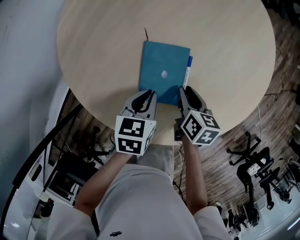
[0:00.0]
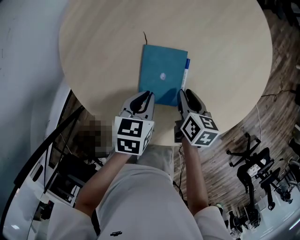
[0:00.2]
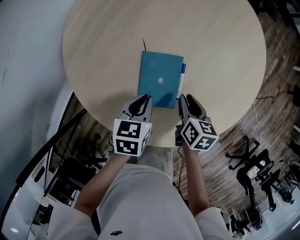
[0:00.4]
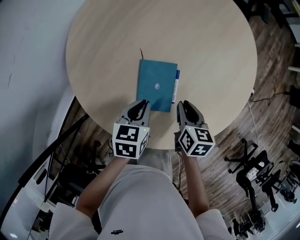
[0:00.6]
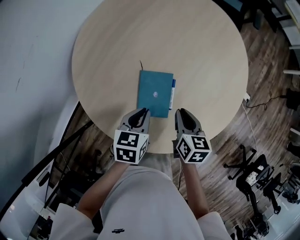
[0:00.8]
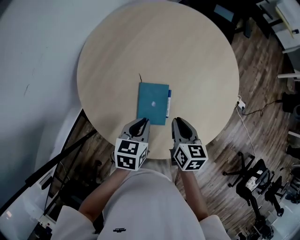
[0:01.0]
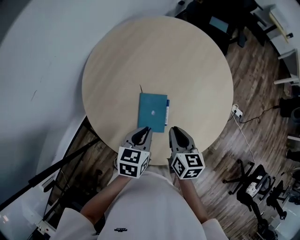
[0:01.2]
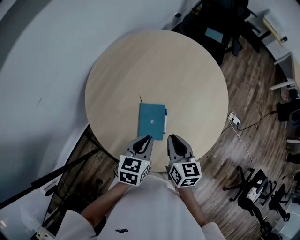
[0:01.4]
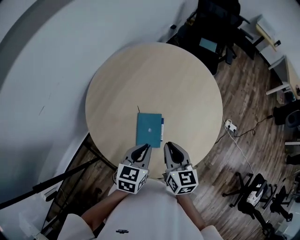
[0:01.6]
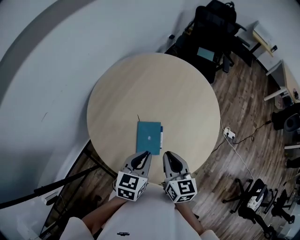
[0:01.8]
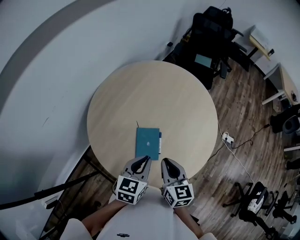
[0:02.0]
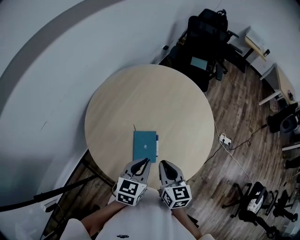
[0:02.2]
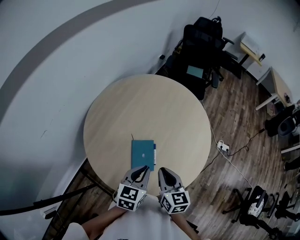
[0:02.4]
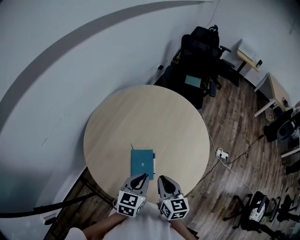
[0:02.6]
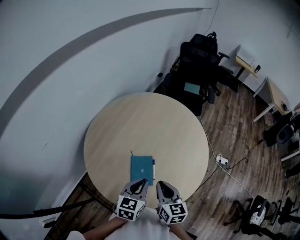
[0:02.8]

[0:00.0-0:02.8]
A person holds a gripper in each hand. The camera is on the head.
0:00.0 to 0:01.4: The two grippers go about 25 cm upward. The right gripper rotates approximately 30 degrees.
0:01.4 to 0:02.8: The two grippers go approximately 10 cm upward.

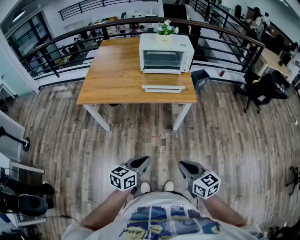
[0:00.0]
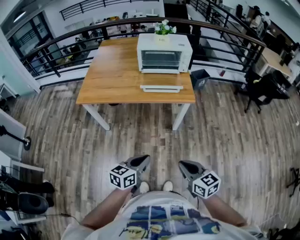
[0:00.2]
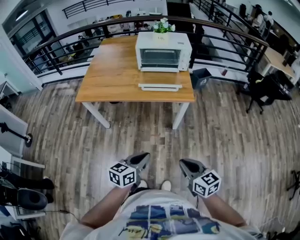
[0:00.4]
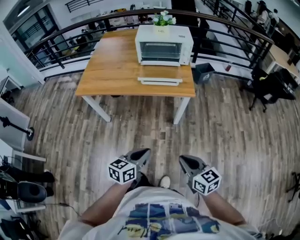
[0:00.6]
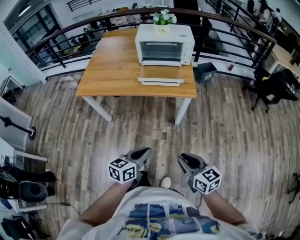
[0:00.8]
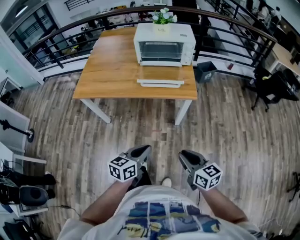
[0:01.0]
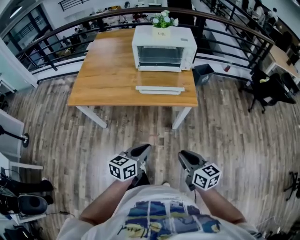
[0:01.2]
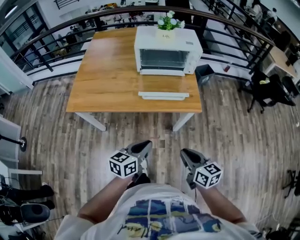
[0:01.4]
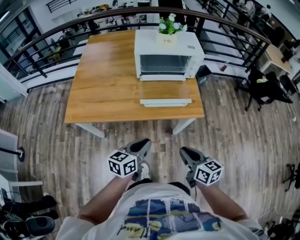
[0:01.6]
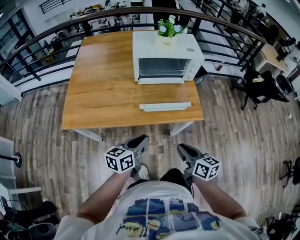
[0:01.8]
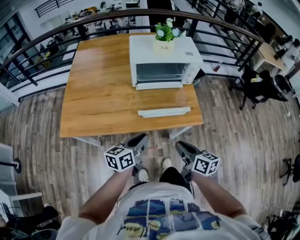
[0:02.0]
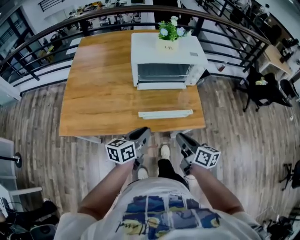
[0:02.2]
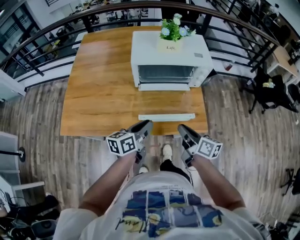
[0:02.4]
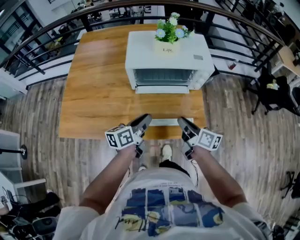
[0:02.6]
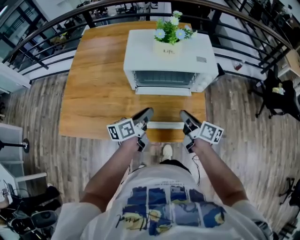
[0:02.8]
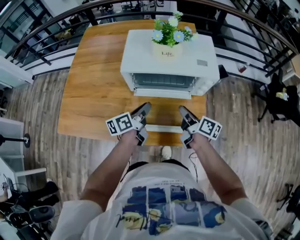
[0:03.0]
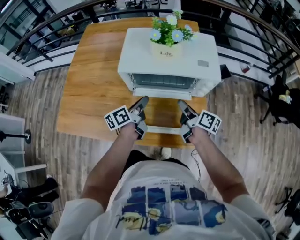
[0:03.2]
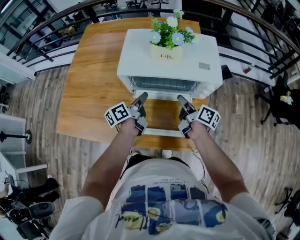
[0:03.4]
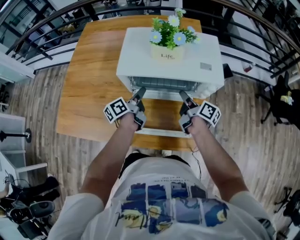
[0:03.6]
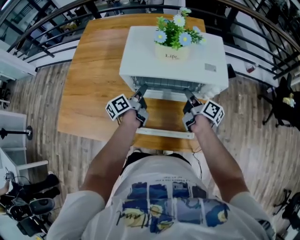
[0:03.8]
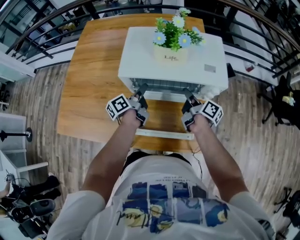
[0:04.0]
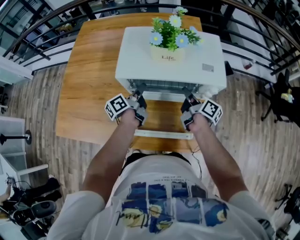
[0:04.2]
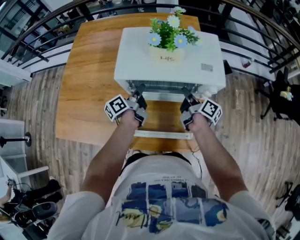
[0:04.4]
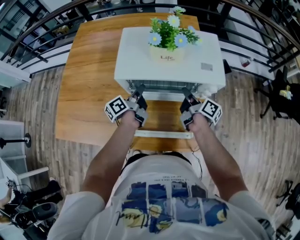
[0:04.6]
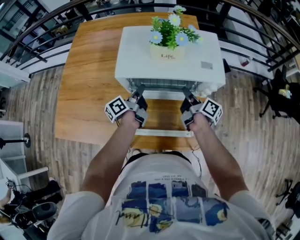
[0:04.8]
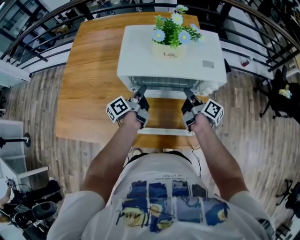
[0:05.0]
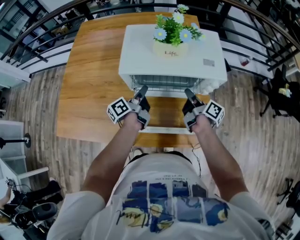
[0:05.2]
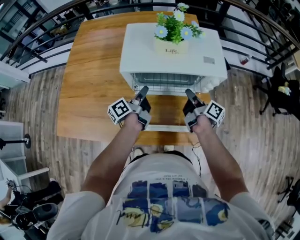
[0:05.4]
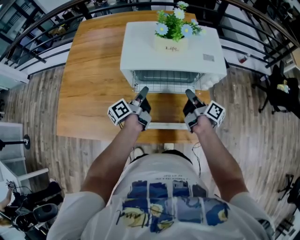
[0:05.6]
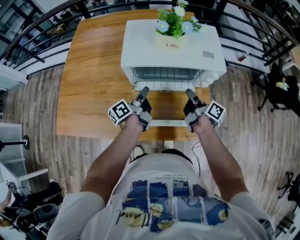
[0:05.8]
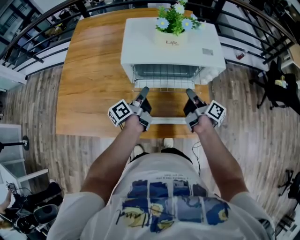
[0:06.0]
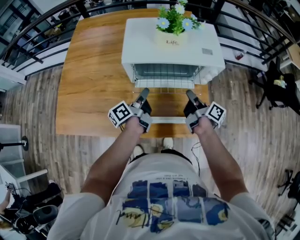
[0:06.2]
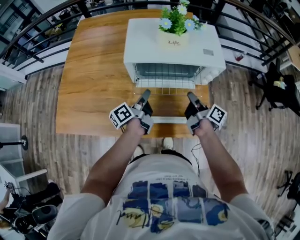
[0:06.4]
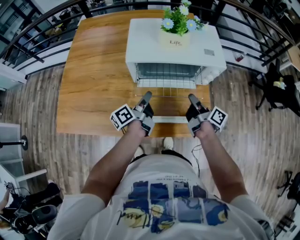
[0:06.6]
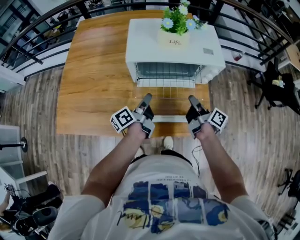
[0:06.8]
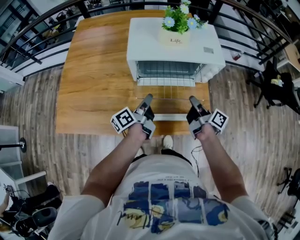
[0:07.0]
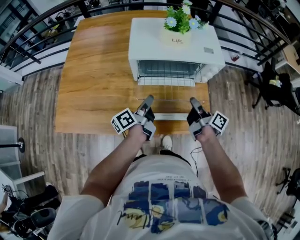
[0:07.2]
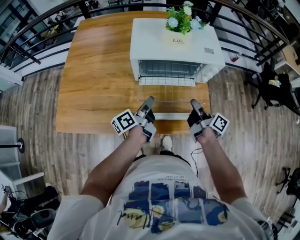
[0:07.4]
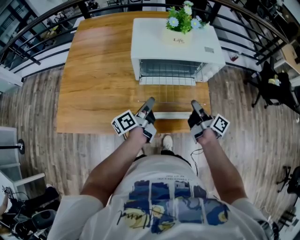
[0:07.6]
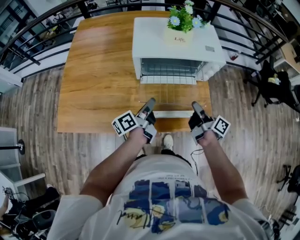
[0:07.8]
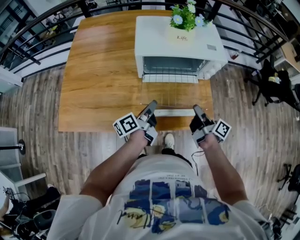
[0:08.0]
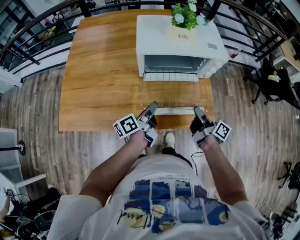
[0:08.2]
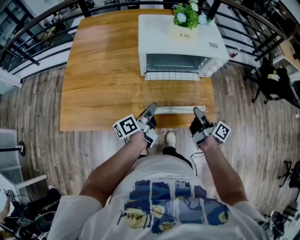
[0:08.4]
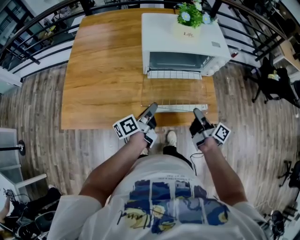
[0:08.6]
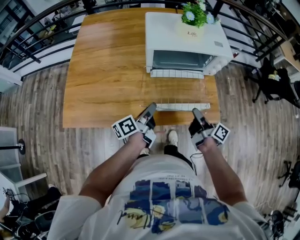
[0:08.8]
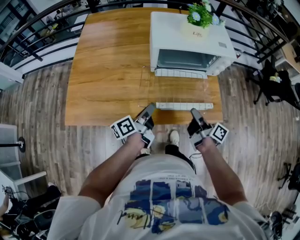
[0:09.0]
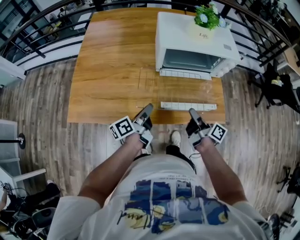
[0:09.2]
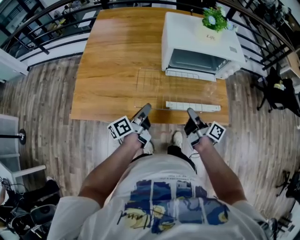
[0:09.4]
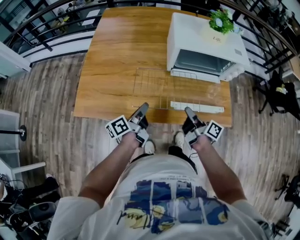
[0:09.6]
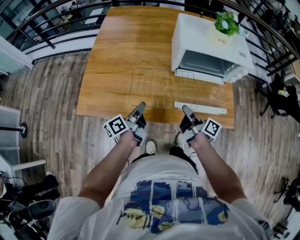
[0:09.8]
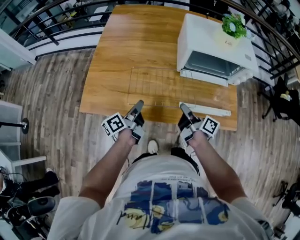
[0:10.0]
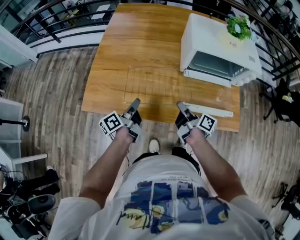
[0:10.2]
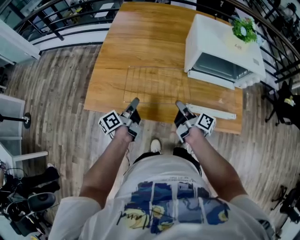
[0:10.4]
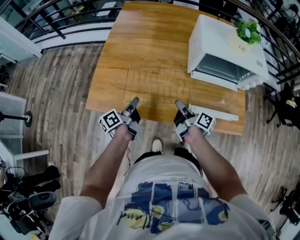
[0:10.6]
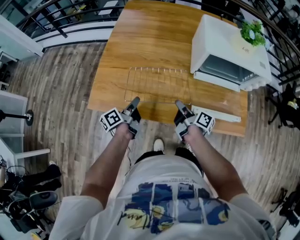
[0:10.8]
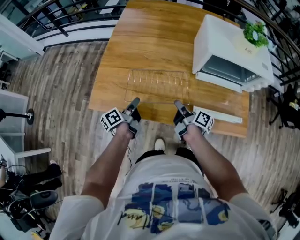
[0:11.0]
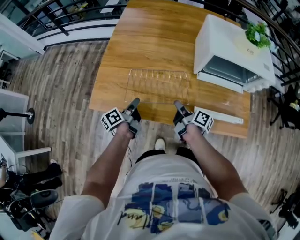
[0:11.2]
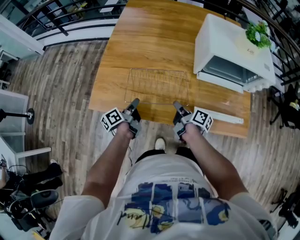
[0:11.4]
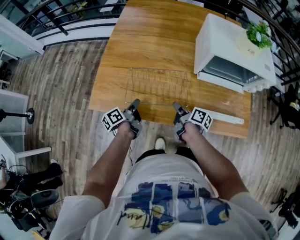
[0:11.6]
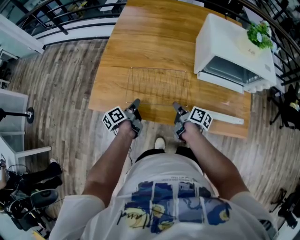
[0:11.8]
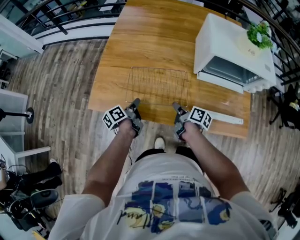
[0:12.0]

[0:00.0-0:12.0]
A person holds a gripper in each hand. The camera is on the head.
0:00.0 to 0:01.6: Both grippers move forward, approximately 30 cm.
0:01.6 to 0:03.0: The grippers both shift forward by roughly 40 cm. The left gripper rotates about 30 degrees; the right gripper swivels roughly 40 degrees.
0:03.0 to 0:04.4: The two grippers go some 10 cm forward.
0:04.4 to 0:06.0: Both grippers travel together backward, roughly 10 cm.
0:06.0 to 0:07.6: Both grippers move backward, some 10 cm.
0:07.6 to 0:09.0: The two grippers go about 10 cm backward and to the left.
0:09.0 to 0:10.4: Both grippers move to the left, about 25 cm.
0:10.4 to 0:12.0: The grippers both shift downward by roughly 10 cm.

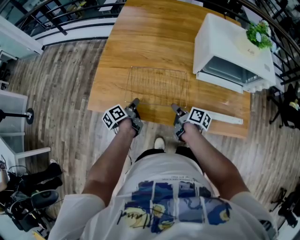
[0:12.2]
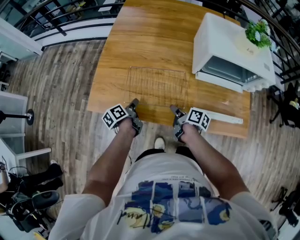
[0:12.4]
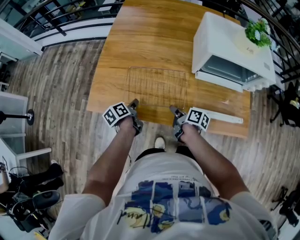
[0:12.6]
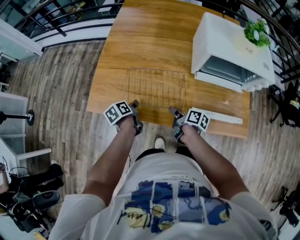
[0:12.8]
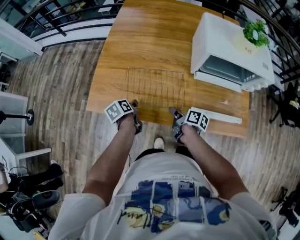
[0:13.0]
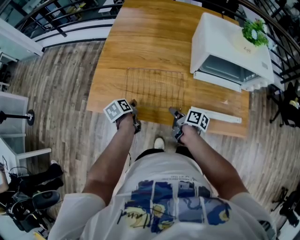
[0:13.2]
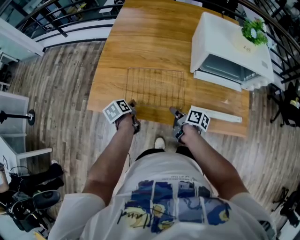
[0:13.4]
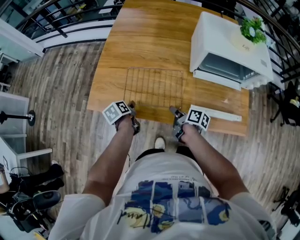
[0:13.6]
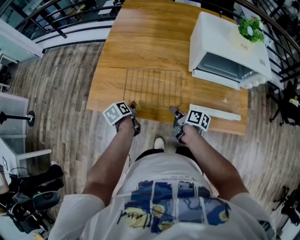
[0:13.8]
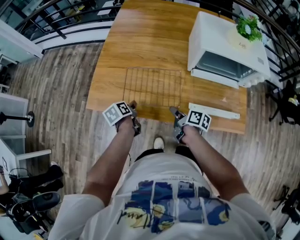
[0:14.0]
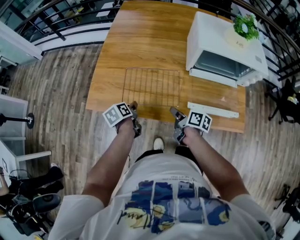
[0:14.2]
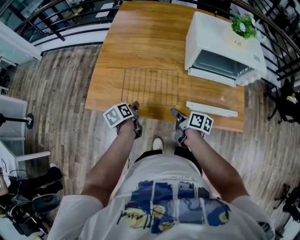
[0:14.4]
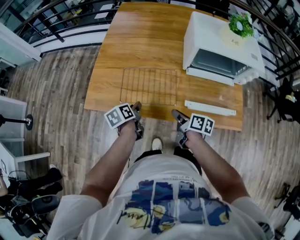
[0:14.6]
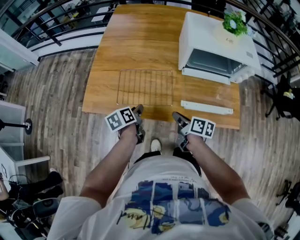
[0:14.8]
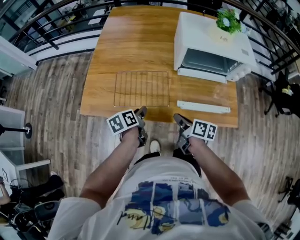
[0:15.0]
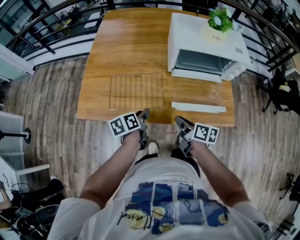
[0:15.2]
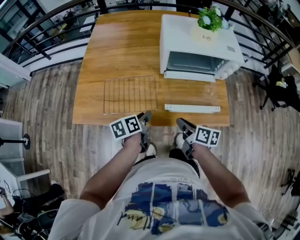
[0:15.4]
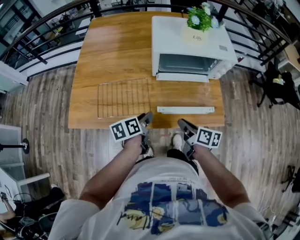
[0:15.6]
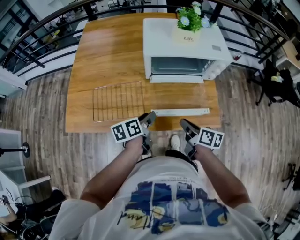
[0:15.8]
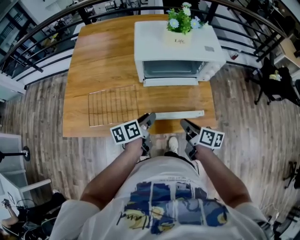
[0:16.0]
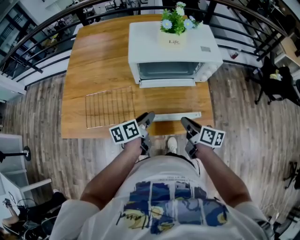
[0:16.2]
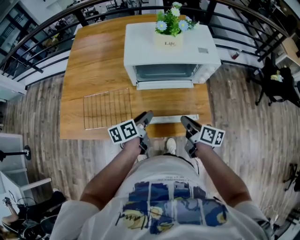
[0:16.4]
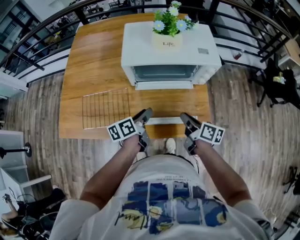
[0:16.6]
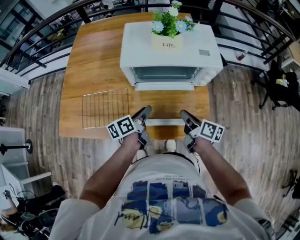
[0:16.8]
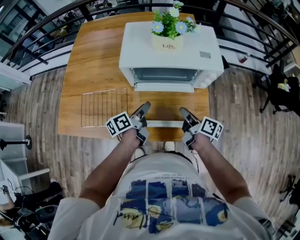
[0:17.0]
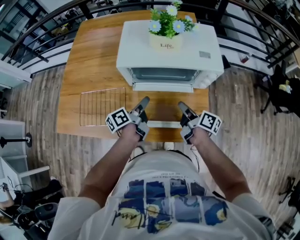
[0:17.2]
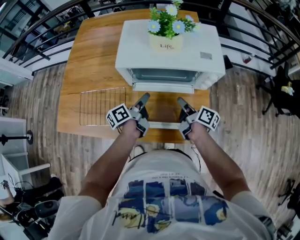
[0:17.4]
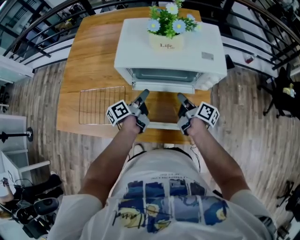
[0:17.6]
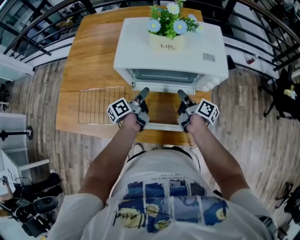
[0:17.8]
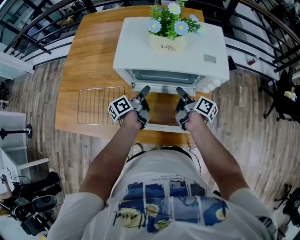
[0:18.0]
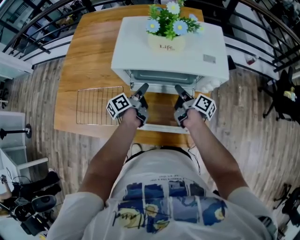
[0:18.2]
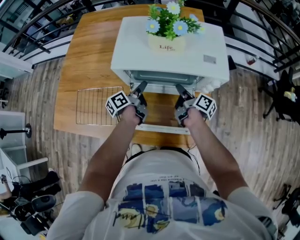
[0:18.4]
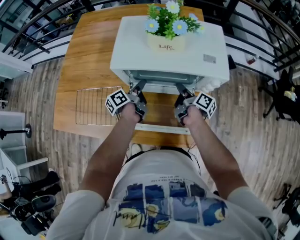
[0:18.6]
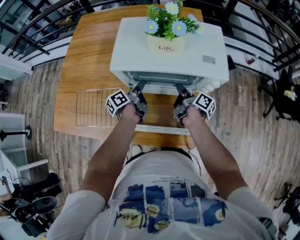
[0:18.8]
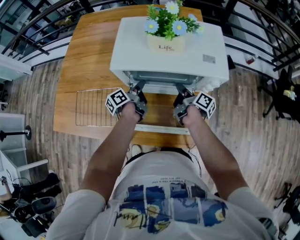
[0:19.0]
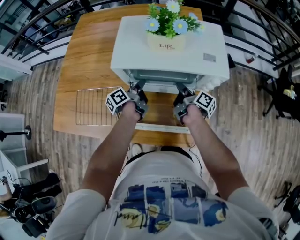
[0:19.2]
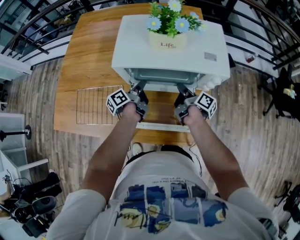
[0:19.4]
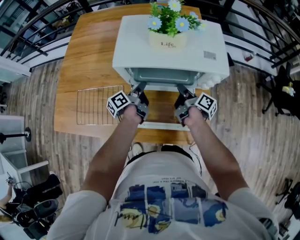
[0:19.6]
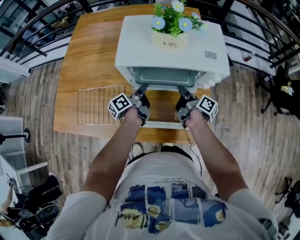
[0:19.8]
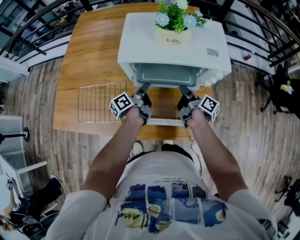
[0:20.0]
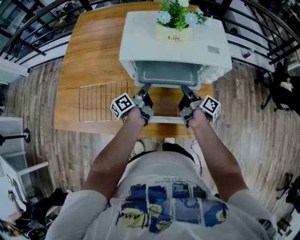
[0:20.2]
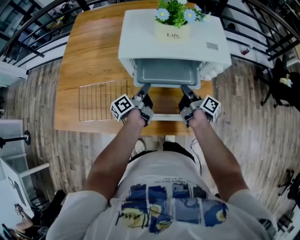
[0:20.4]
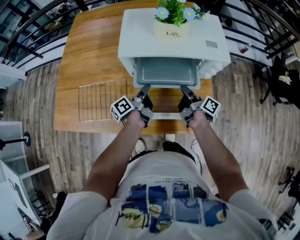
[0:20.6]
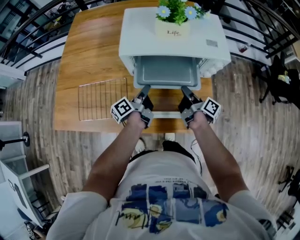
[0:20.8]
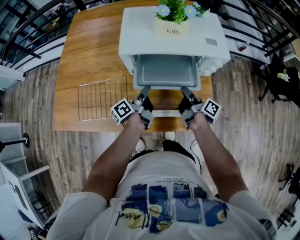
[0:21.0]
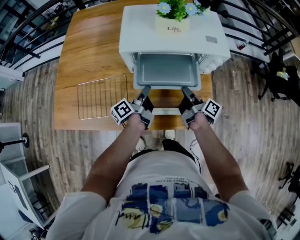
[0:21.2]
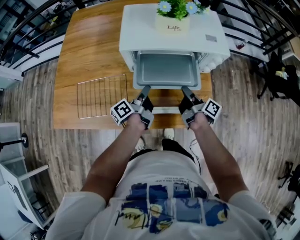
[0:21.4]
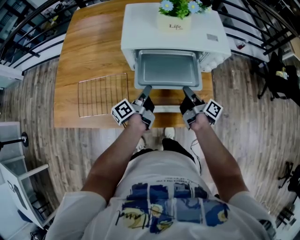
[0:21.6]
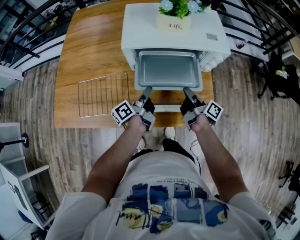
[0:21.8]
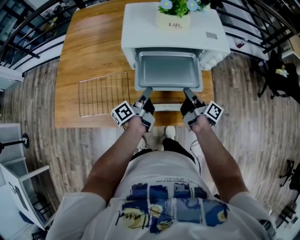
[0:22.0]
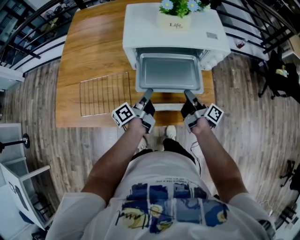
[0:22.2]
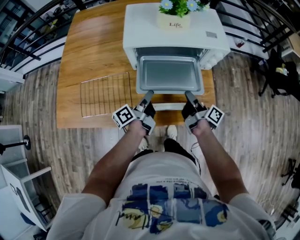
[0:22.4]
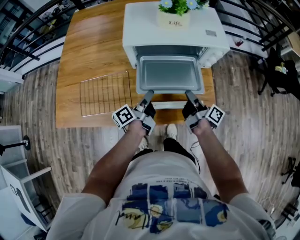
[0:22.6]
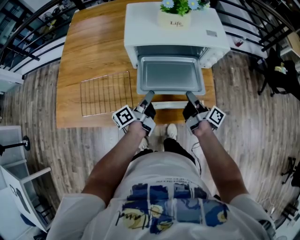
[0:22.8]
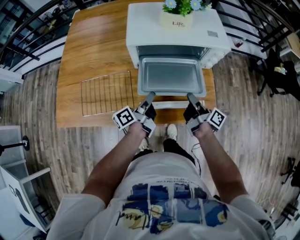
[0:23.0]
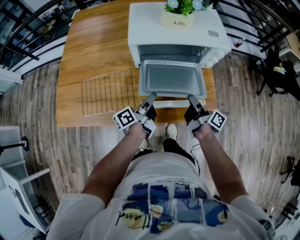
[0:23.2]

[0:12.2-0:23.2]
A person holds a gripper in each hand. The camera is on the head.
0:12.2 to 0:13.8: The left gripper swivels approximately 30 degrees, and opens.
0:13.8 to 0:15.4: The right gripper goes roughly 20 cm to the right, upward and backward. Meanwhile the left gripper shifts roughly 25 cm to the right and upward, and rotates some 30 degrees.
0:15.4 to 0:17.0: The grippers both shift to the right and forward by some 20 cm. The left gripper turns by approximately 20 degrees.
0:17.0 to 0:18.4: Both grippers move forward, some 15 cm.
0:18.4 to 0:20.0: The left gripper closes.
0:20.0 to 0:21.6: Both grippers move backward, approximately 10 cm.
0:21.6 to 0:23.2: Both grippers move backward, roughly 5 cm.
